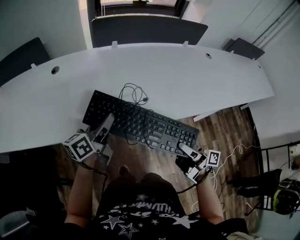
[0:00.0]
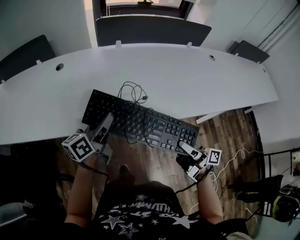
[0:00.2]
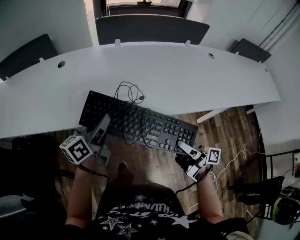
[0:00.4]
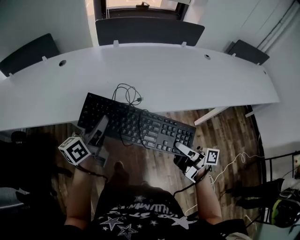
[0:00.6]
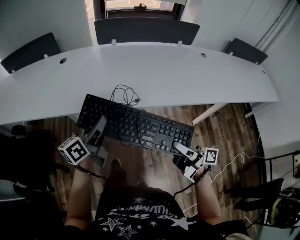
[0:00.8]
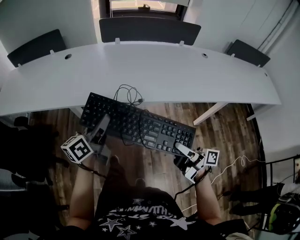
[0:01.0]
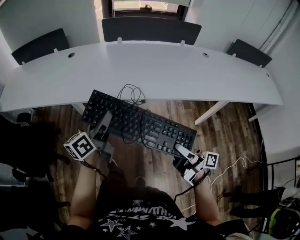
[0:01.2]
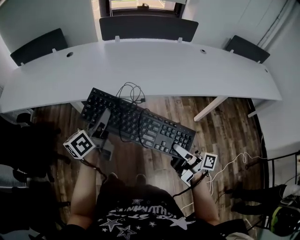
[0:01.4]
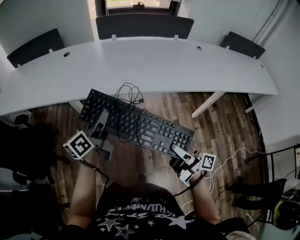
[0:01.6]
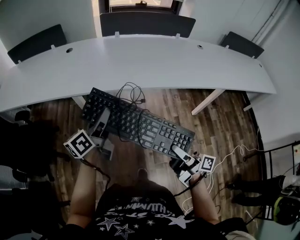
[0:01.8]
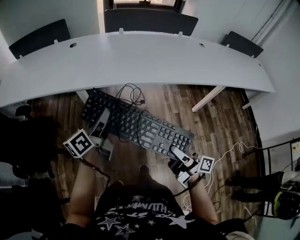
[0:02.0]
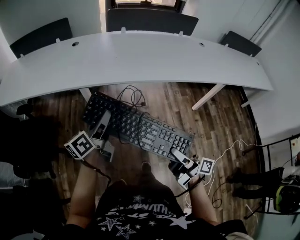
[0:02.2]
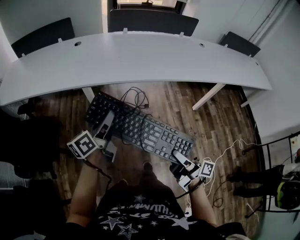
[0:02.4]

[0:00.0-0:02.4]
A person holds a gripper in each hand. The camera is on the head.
0:00.0 to 0:02.4: The grippers move only a little.

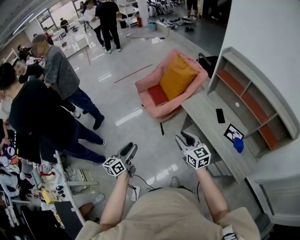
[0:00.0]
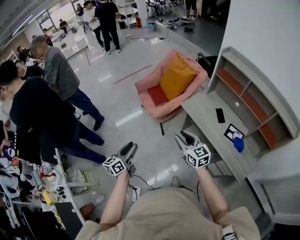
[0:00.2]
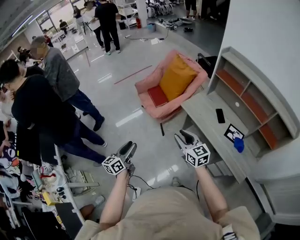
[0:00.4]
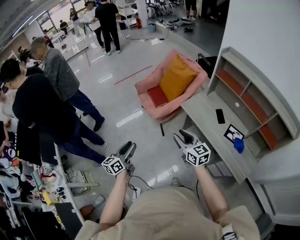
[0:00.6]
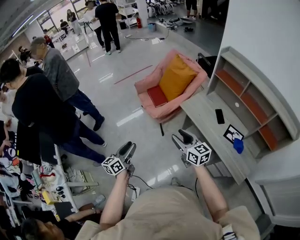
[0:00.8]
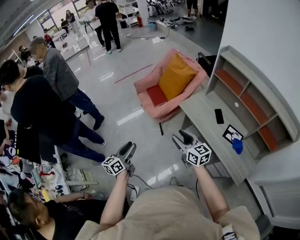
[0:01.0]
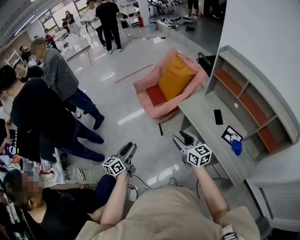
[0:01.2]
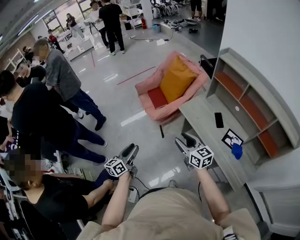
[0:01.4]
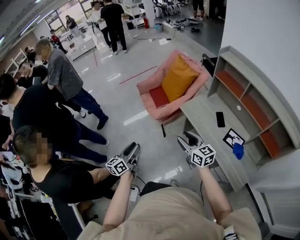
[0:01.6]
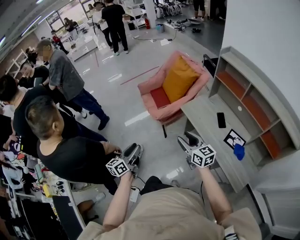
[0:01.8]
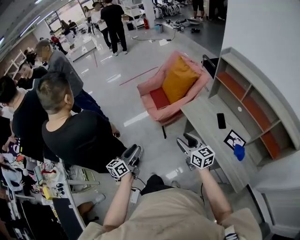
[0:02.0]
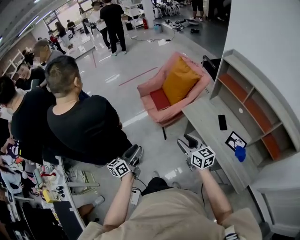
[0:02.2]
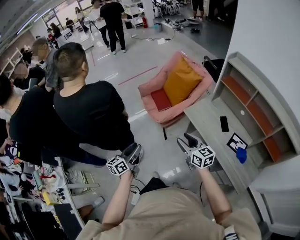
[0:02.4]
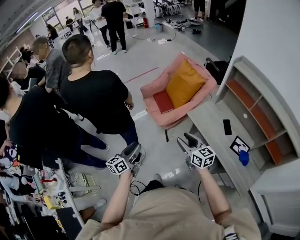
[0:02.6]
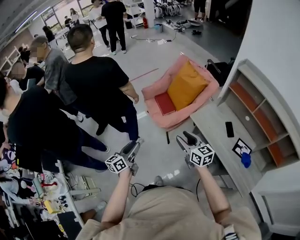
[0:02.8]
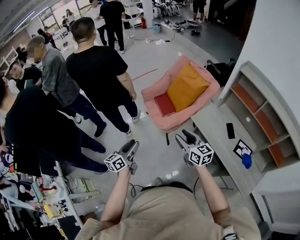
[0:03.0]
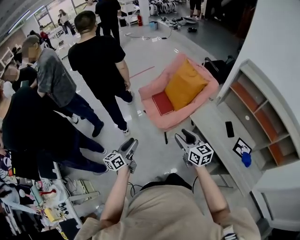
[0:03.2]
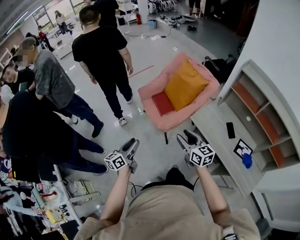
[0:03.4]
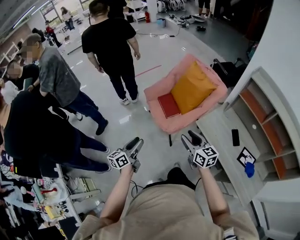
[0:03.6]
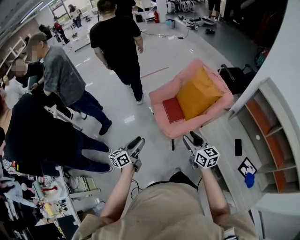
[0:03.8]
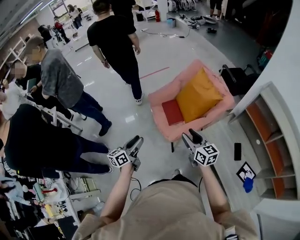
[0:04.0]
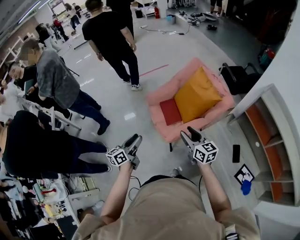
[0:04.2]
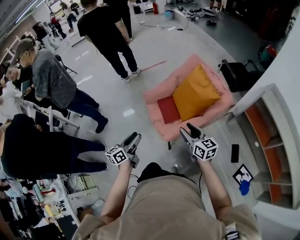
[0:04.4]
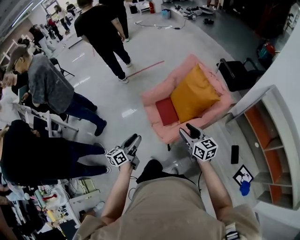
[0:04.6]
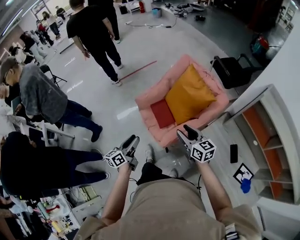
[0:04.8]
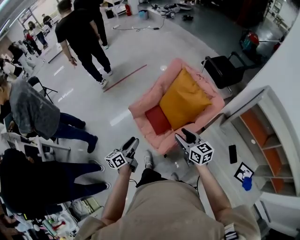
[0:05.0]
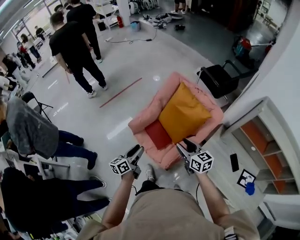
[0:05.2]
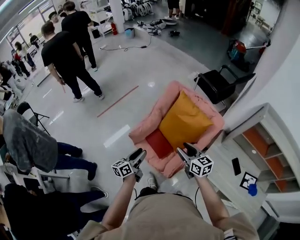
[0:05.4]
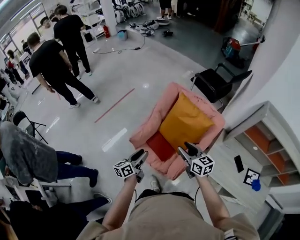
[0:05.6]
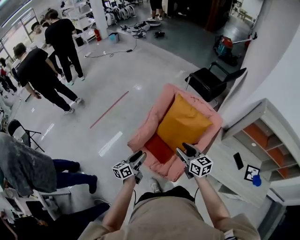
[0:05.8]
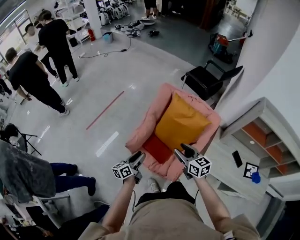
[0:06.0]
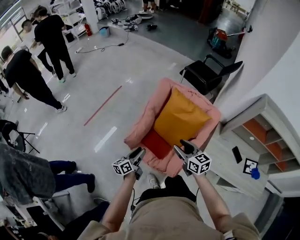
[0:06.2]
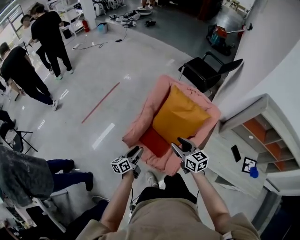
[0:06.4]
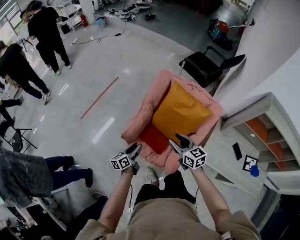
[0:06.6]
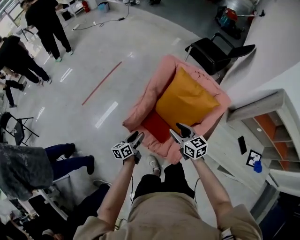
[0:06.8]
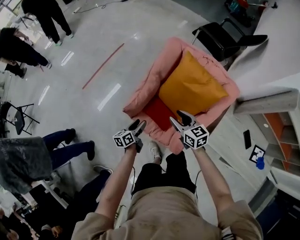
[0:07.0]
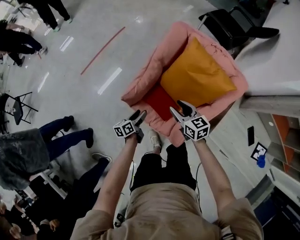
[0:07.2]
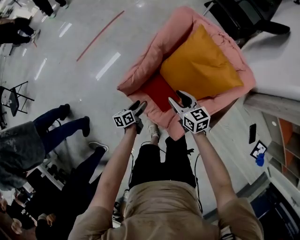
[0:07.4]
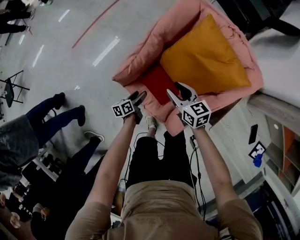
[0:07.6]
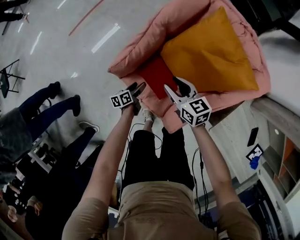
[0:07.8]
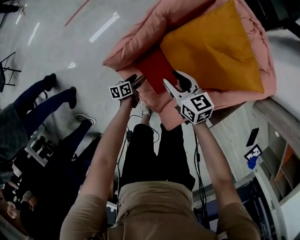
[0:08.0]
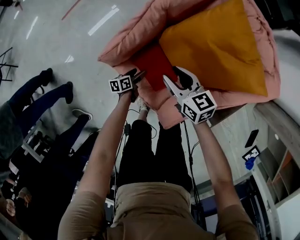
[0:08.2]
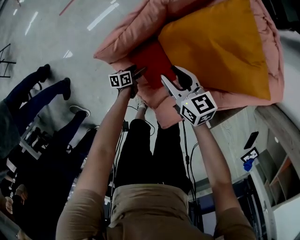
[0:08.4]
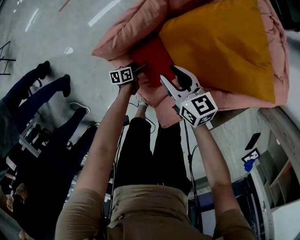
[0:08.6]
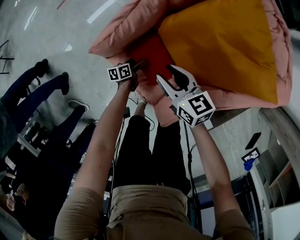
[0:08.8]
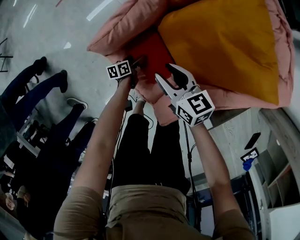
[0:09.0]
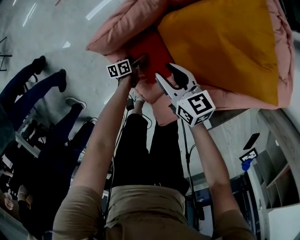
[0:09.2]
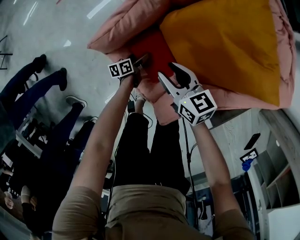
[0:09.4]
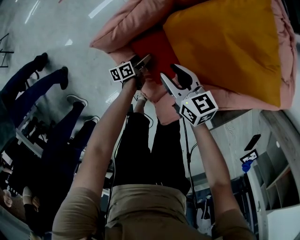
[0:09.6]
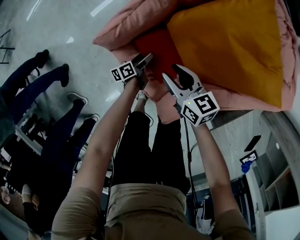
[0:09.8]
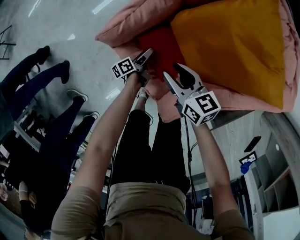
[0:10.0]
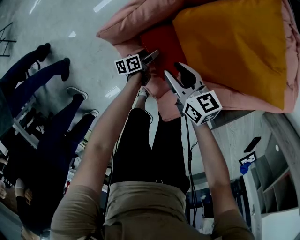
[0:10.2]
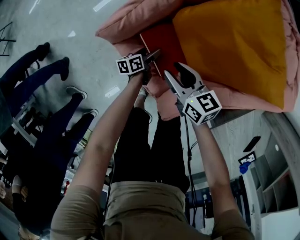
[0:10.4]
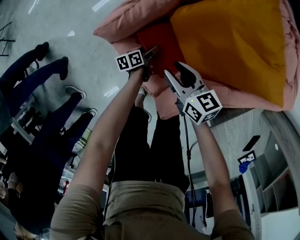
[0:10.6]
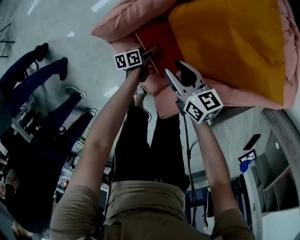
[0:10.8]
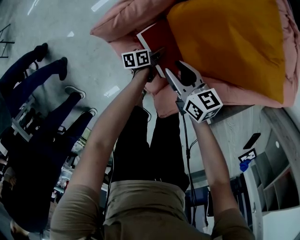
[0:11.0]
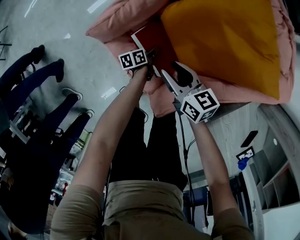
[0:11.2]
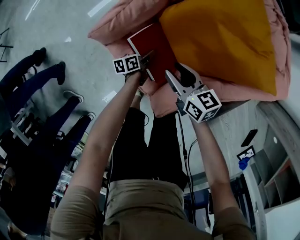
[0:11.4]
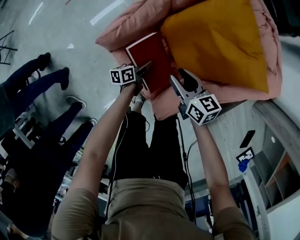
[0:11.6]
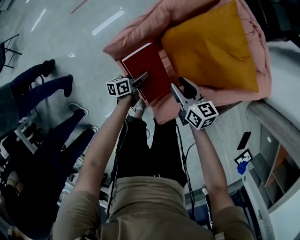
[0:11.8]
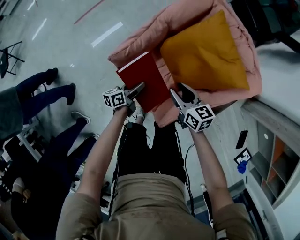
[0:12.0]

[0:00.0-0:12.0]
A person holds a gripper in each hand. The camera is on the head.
0:00.0 to 0:01.6: Both grippers travel together to the right, some 10 cm.
0:01.6 to 0:03.0: The right gripper travels to the left and forward by roughly 20 cm; the left gripper heads forward and to the left, covering roughly 20 cm.
0:03.0 to 0:04.4: Both grippers move forward, about 25 cm.
0:04.4 to 0:06.0: The left gripper changes place by about 35 cm, and swivels some 30 degrees. The right gripper moves approximately 25 cm, and turns by some 30 degrees.
0:06.0 to 0:07.6: The left gripper moves downward, approximately 40 cm, and changes its angle by approximately 30 degrees; the right gripper shifts roughly 30 cm downward and forward.
0:07.6 to 0:09.0: The left gripper is displaced downward by approximately 20 cm. Meanwhile the right gripper shifts approximately 10 cm downward.
0:09.0 to 0:10.4: The left gripper heads upward, covering roughly 5 cm.
0:10.4 to 0:12.0: The right gripper is displaced upward by roughly 15 cm, while the left gripper heads upward, covering some 25 cm, and closes.

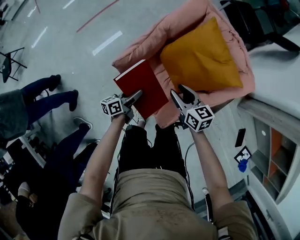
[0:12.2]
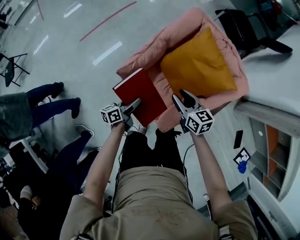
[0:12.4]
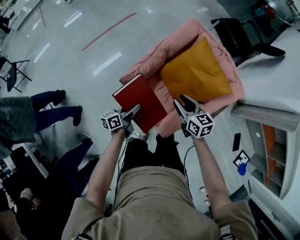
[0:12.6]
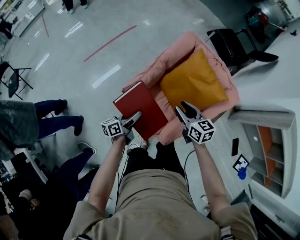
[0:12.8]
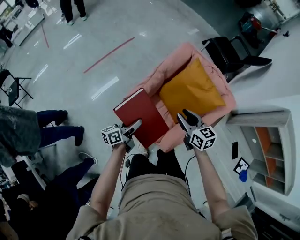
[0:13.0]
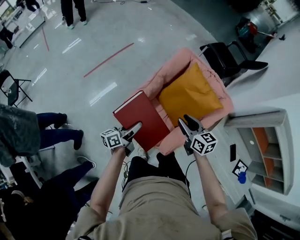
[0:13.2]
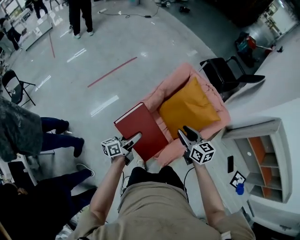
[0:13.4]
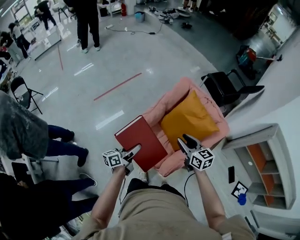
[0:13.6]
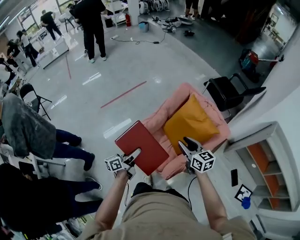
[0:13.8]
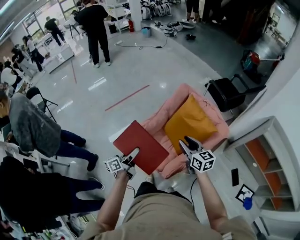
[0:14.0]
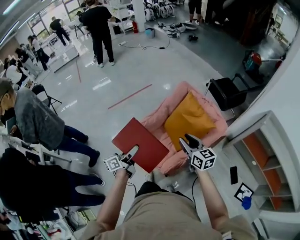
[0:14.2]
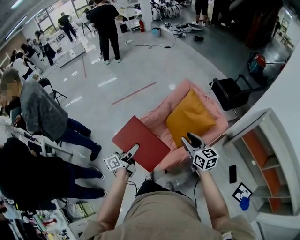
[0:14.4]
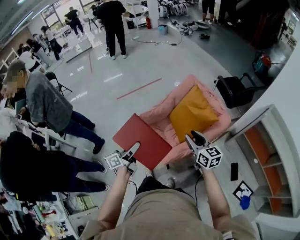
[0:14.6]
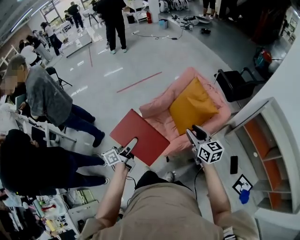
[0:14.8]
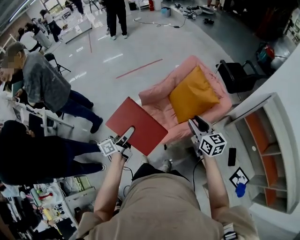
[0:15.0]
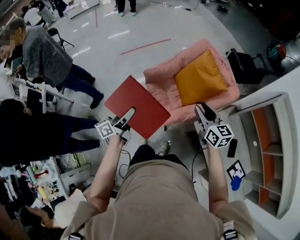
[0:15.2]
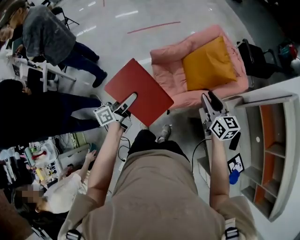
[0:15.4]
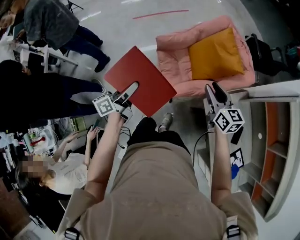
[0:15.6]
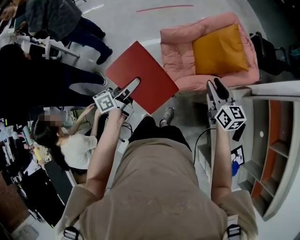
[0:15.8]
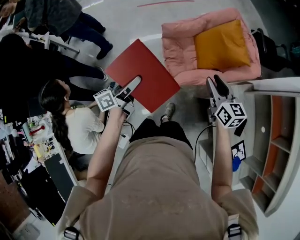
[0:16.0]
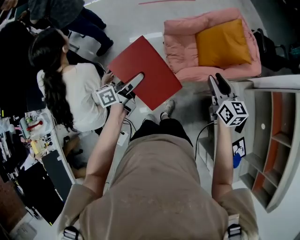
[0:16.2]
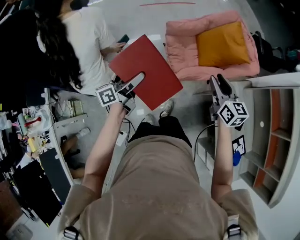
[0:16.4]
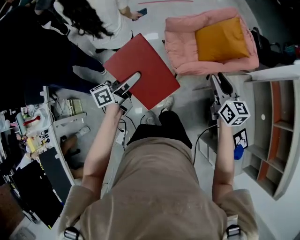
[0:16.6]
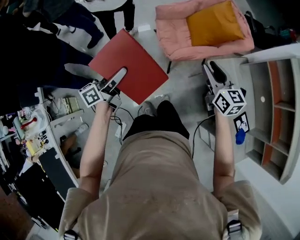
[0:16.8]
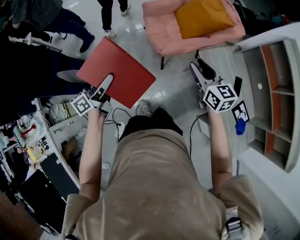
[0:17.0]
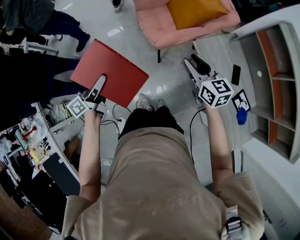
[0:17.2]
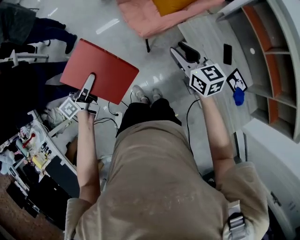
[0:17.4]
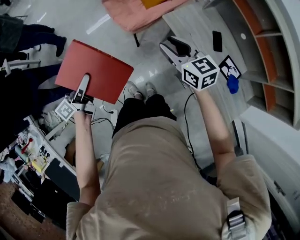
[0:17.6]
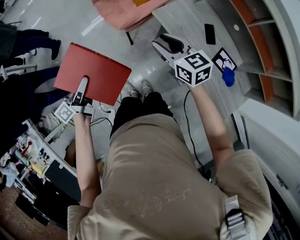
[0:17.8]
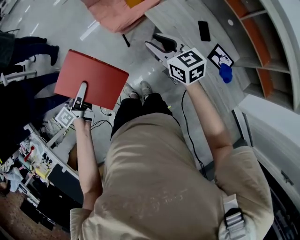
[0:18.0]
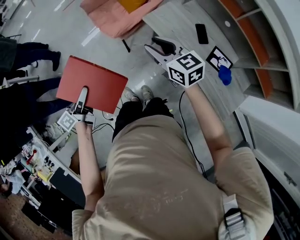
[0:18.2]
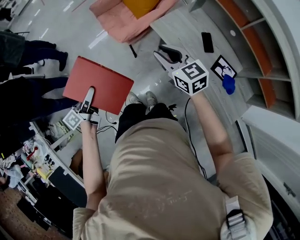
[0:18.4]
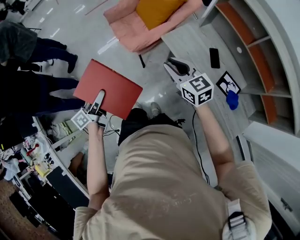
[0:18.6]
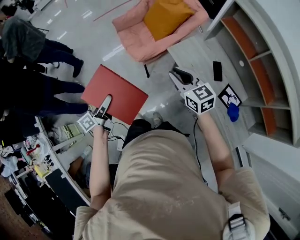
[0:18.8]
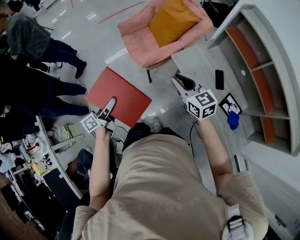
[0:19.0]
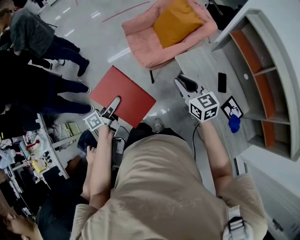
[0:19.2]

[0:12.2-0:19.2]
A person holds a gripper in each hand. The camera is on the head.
0:12.2 to 0:13.6: Both grippers move upward, some 25 cm.
0:13.6 to 0:15.0: The left gripper goes about 25 cm backward, and swivels roughly 20 degrees. The right gripper heads backward and to the right, covering about 25 cm.
0:15.0 to 0:16.4: The grippers both shift backward and to the left by roughly 15 cm.
0:16.4 to 0:17.8: Both grippers move backward and to the right, roughly 25 cm.
0:17.8 to 0:19.2: The grippers make only small movements.

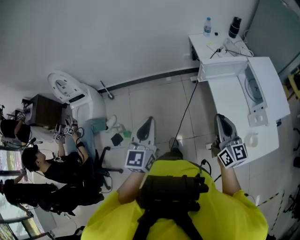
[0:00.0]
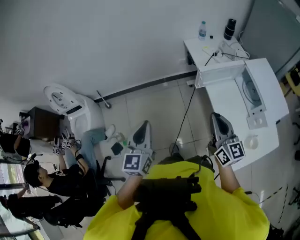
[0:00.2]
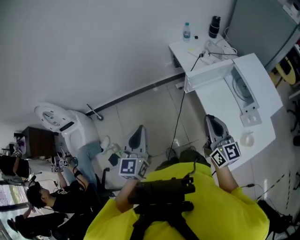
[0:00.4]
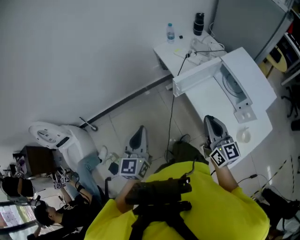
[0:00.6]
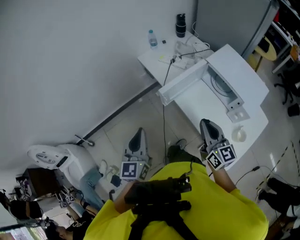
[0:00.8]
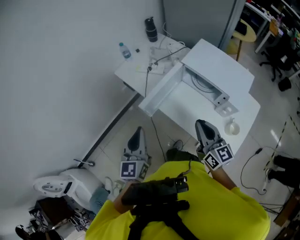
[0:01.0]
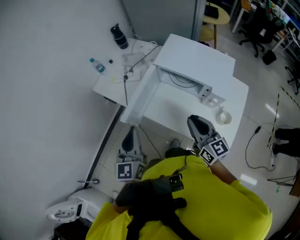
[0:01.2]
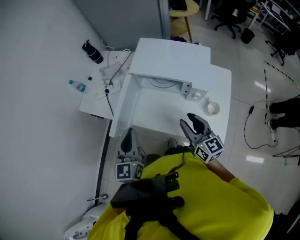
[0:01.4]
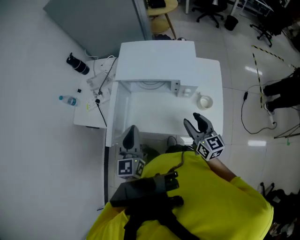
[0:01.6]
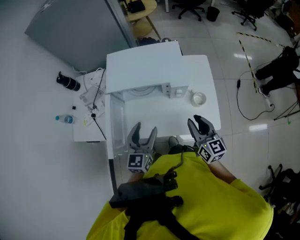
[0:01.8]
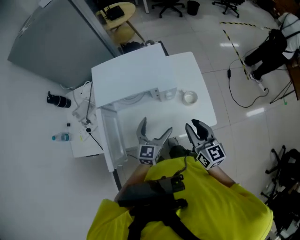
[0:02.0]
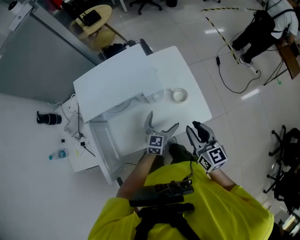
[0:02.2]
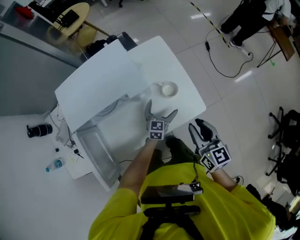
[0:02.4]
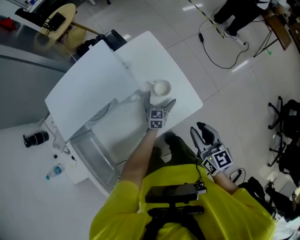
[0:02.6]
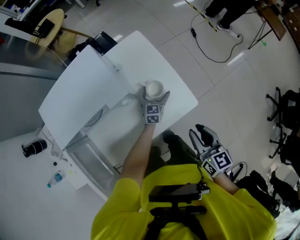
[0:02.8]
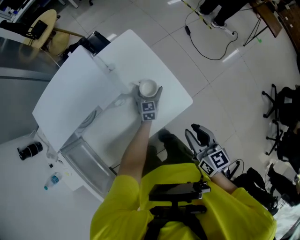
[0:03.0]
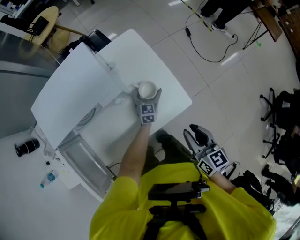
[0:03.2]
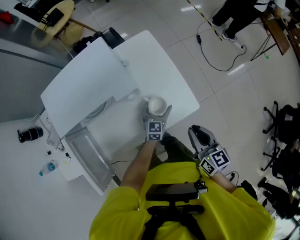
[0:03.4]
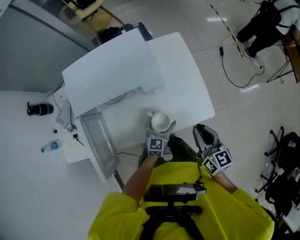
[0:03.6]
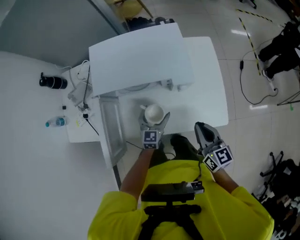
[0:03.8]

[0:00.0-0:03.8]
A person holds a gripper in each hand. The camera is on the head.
0:00.0 to 0:01.2: The right gripper shifts by approximately 25 cm, and turns by approximately 40 degrees, while the left gripper moves approximately 40 cm, and changes its angle by some 40 degrees.
0:01.2 to 0:02.6: The left gripper ends up about 60 cm from where it was, rotates about 80 degrees, and opens up. Meanwhile the right gripper ends up approximately 30 cm from where it was, turns by some 60 degrees, and opens, then closes again.
0:02.6 to 0:03.8: The right gripper changes place by about 15 cm, rotates about 20 degrees, and closes up. The left gripper changes place by about 25 cm, and swivels some 30 degrees.
